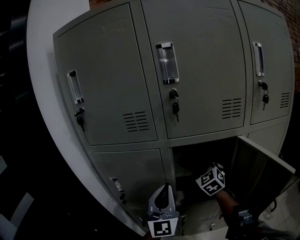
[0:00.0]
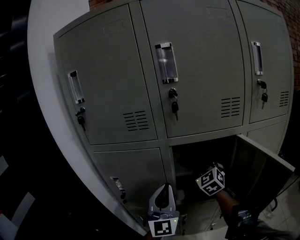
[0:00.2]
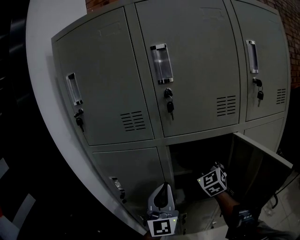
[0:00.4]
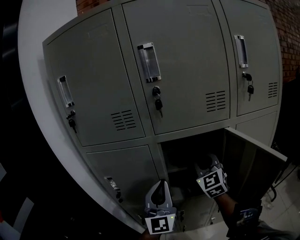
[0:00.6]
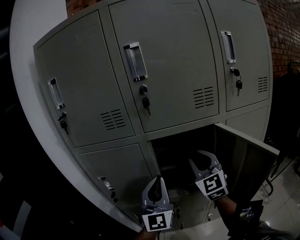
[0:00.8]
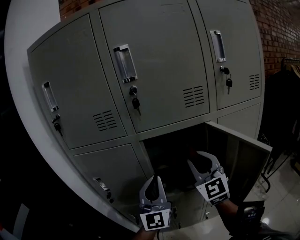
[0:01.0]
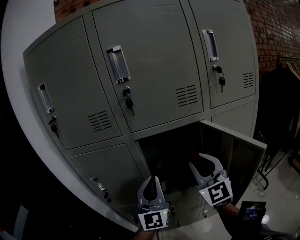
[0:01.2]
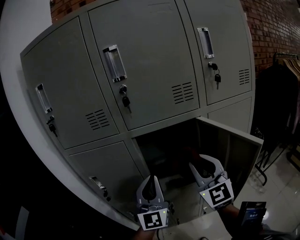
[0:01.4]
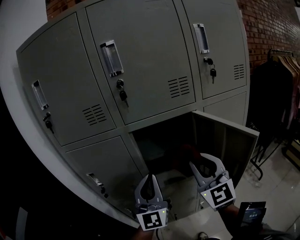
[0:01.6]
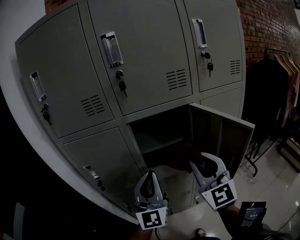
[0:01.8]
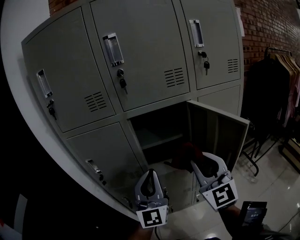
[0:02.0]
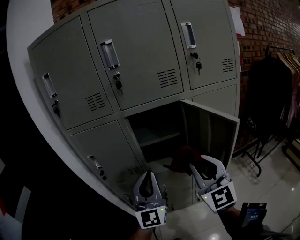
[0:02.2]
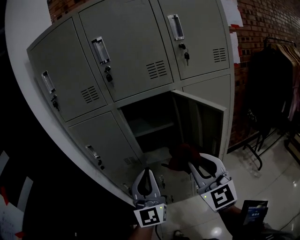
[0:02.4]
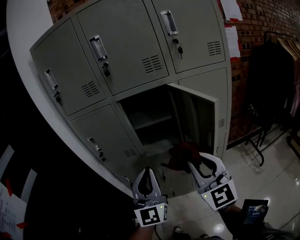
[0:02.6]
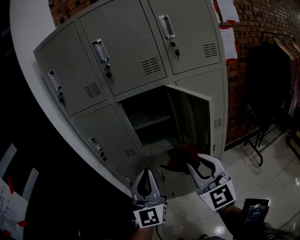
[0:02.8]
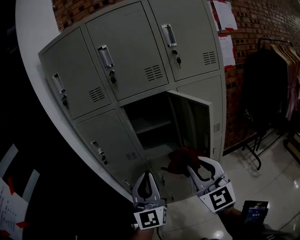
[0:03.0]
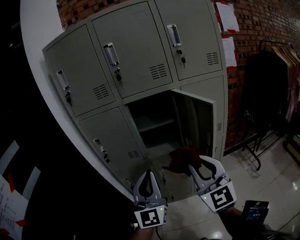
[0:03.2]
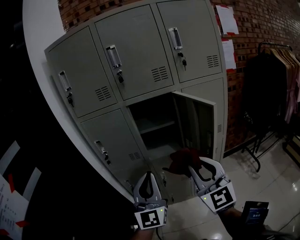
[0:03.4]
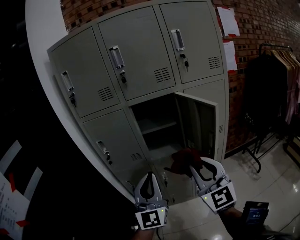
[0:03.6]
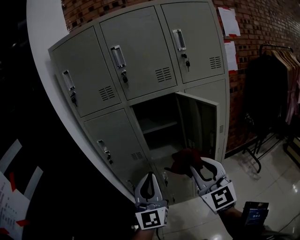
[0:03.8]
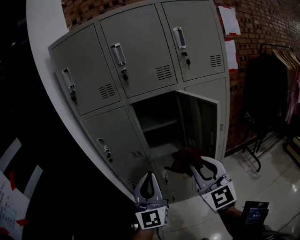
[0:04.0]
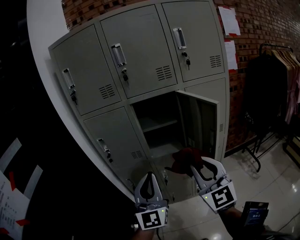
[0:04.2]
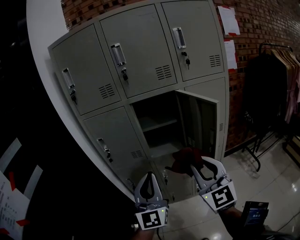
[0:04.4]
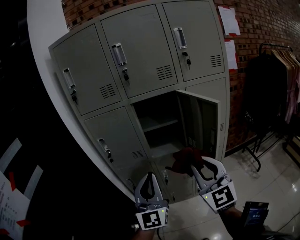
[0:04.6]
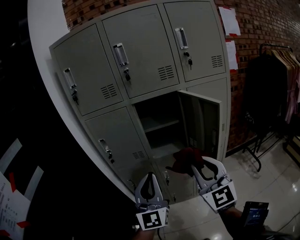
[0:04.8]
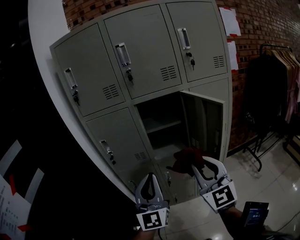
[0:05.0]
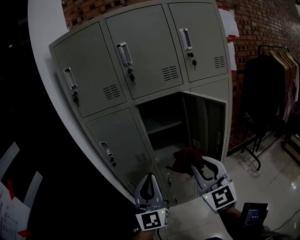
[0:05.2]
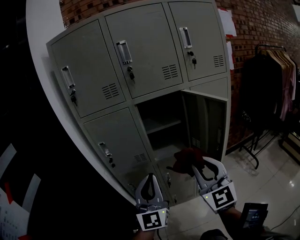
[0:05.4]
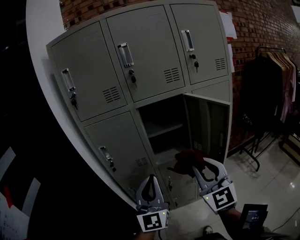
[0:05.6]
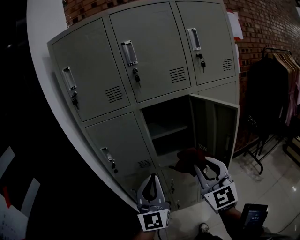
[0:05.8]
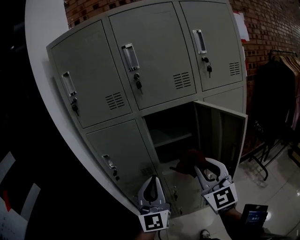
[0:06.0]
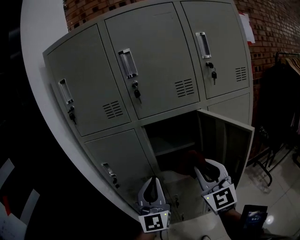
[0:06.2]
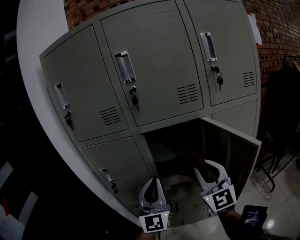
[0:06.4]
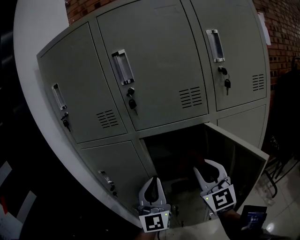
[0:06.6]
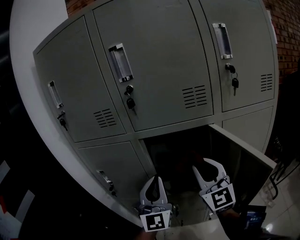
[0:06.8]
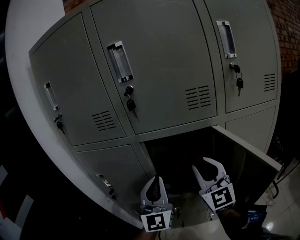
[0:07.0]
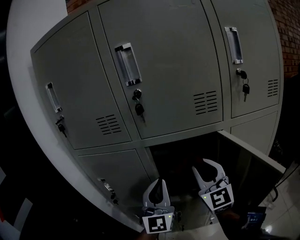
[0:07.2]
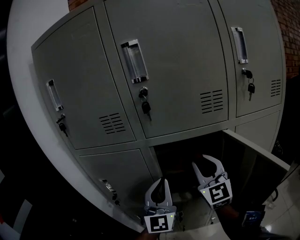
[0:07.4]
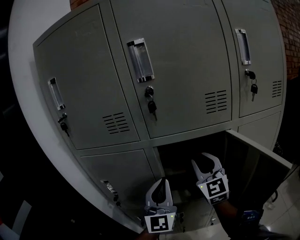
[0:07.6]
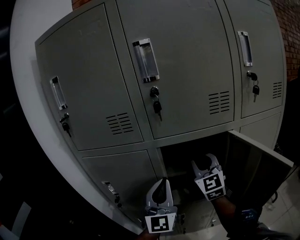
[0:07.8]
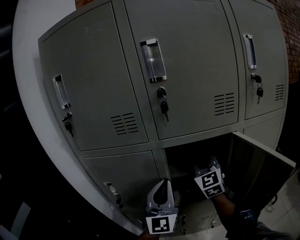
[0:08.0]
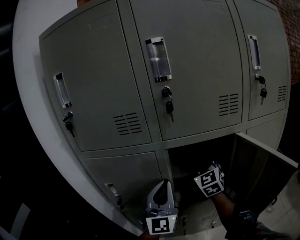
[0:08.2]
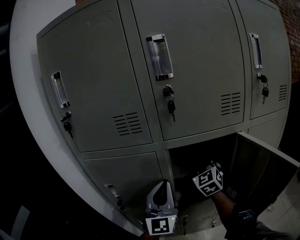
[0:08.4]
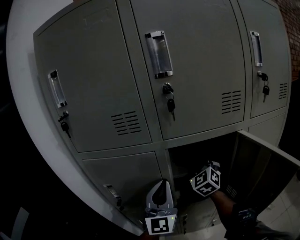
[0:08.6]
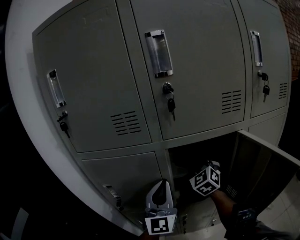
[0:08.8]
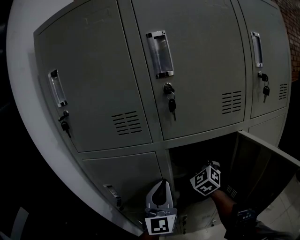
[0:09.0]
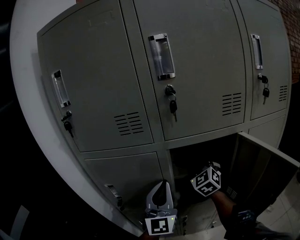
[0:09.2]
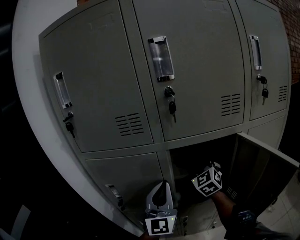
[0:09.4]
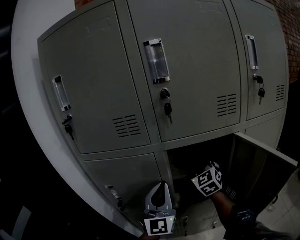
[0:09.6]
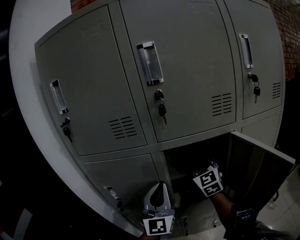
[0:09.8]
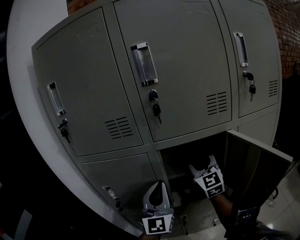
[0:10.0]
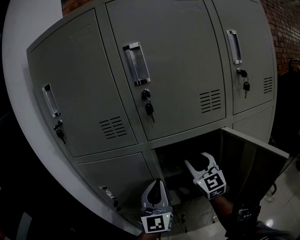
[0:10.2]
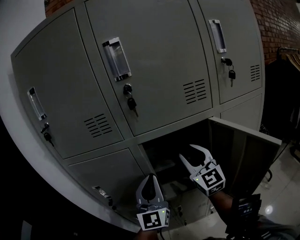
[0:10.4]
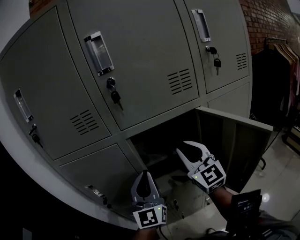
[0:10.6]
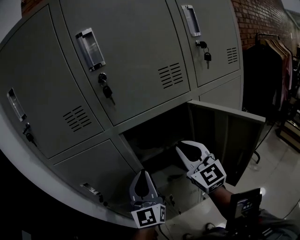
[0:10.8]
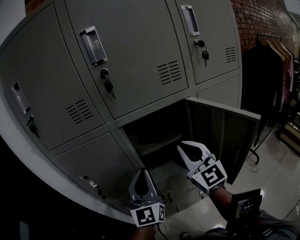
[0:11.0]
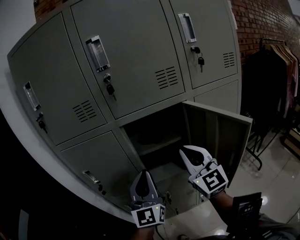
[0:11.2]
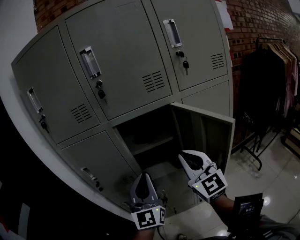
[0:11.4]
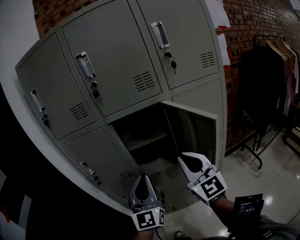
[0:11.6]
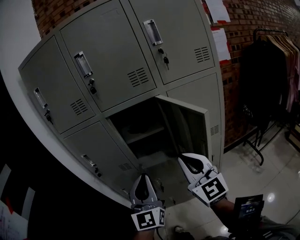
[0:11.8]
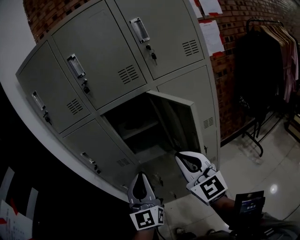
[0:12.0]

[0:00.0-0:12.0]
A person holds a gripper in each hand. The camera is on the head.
0:00.0 to 0:01.6: The right gripper shifts some 25 cm backward and upward, and changes its angle by approximately 30 degrees. The left gripper moves backward and to the right, some 5 cm.
0:01.6 to 0:03.0: The two grippers go approximately 20 cm backward.
0:03.0 to 0:04.4: The grippers stay close to where they were, moving slightly.
0:04.4 to 0:06.0: The two grippers go roughly 10 cm forward.
0:06.0 to 0:07.6: The grippers both shift forward by some 25 cm.
0:07.6 to 0:09.0: The right gripper goes some 10 cm forward and downward, and changes its angle by some 30 degrees.
0:09.0 to 0:10.4: The right gripper heads backward and upward, covering roughly 10 cm, and swivels about 40 degrees.
0:10.4 to 0:12.0: The right gripper goes roughly 30 cm backward, and closes its fingers, while the left gripper heads backward and to the right, covering roughly 25 cm.

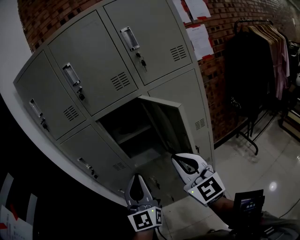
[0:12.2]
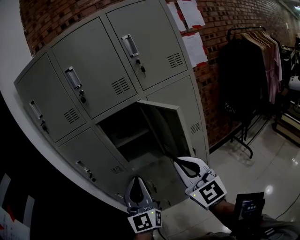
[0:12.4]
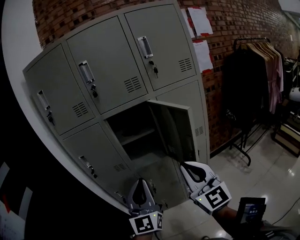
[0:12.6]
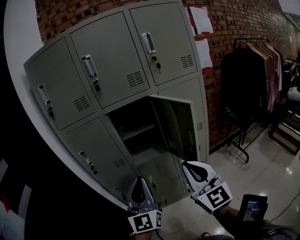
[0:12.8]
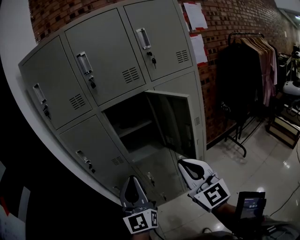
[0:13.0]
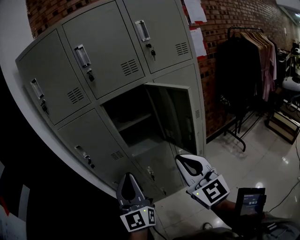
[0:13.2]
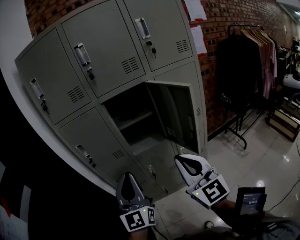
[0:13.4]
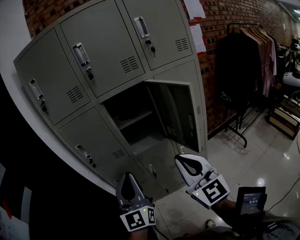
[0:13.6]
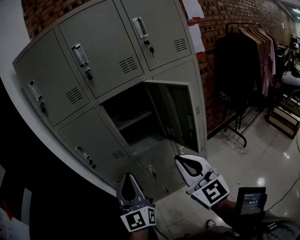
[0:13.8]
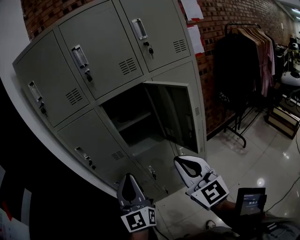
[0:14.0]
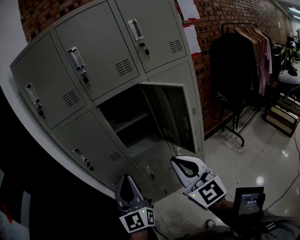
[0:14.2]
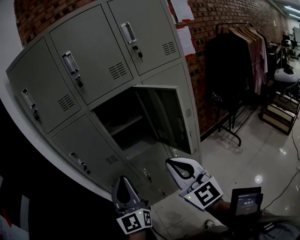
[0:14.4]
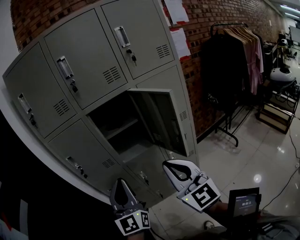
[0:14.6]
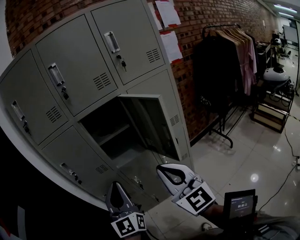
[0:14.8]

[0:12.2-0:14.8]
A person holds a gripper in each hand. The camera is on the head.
0:12.2 to 0:13.4: The right gripper moves to the left and backward, about 10 cm. The left gripper shifts roughly 10 cm to the left.
0:13.4 to 0:14.8: There are only small adjustments of the grippers.

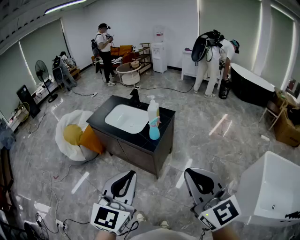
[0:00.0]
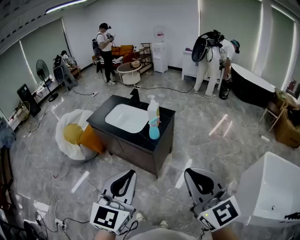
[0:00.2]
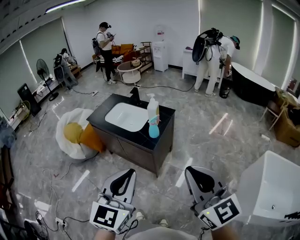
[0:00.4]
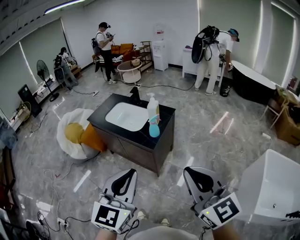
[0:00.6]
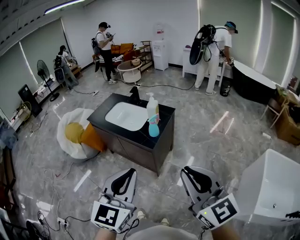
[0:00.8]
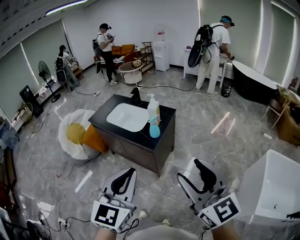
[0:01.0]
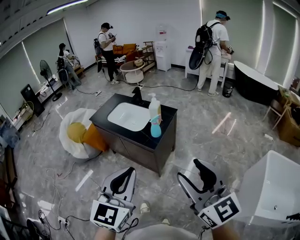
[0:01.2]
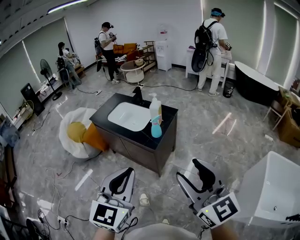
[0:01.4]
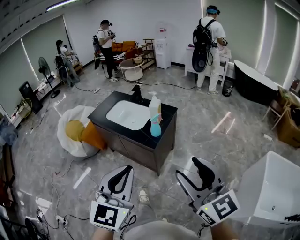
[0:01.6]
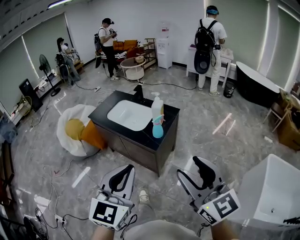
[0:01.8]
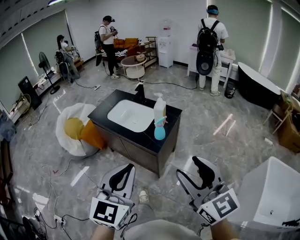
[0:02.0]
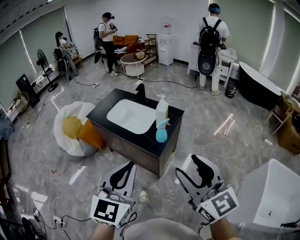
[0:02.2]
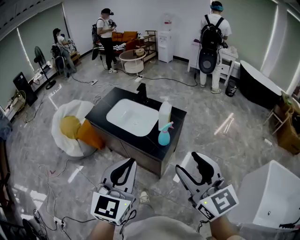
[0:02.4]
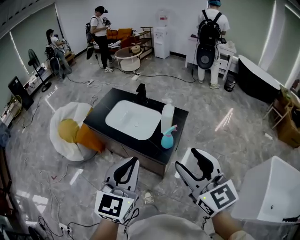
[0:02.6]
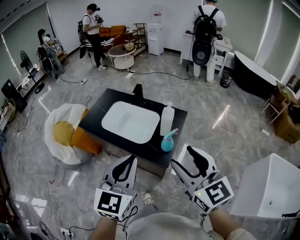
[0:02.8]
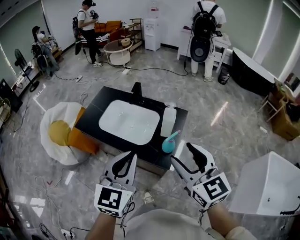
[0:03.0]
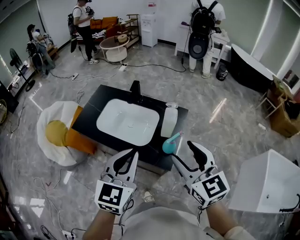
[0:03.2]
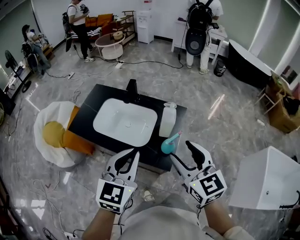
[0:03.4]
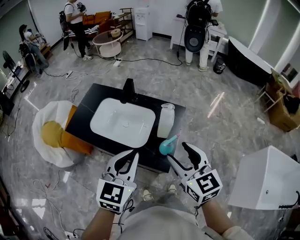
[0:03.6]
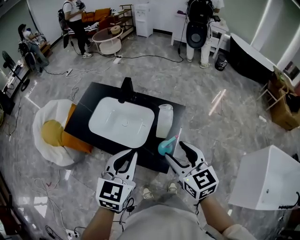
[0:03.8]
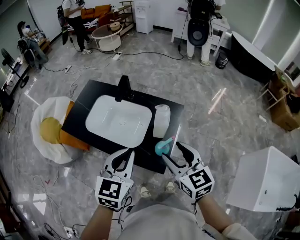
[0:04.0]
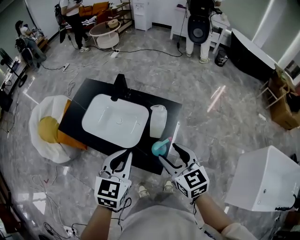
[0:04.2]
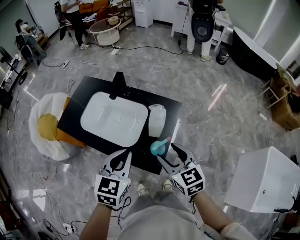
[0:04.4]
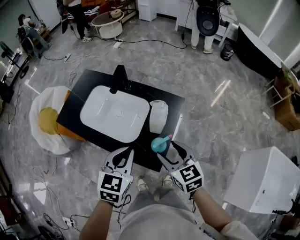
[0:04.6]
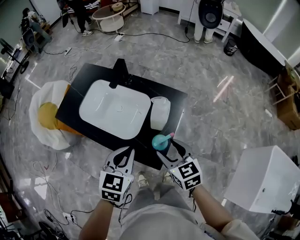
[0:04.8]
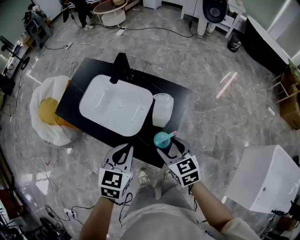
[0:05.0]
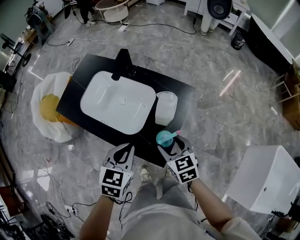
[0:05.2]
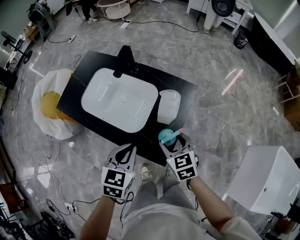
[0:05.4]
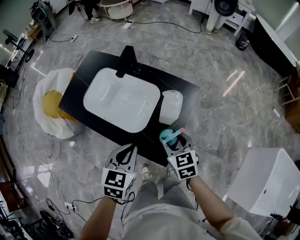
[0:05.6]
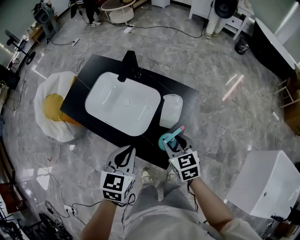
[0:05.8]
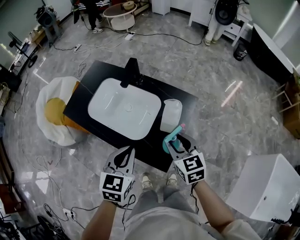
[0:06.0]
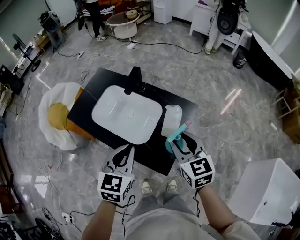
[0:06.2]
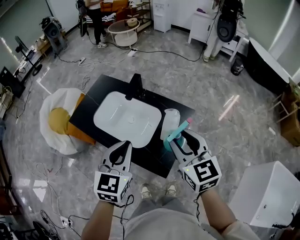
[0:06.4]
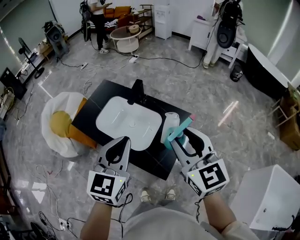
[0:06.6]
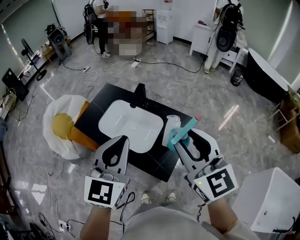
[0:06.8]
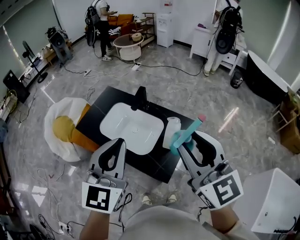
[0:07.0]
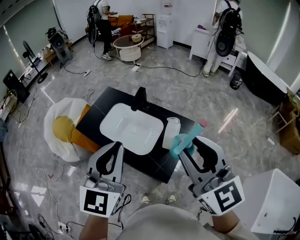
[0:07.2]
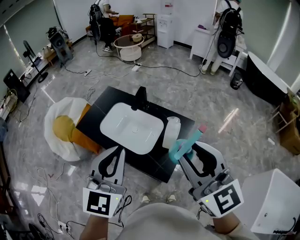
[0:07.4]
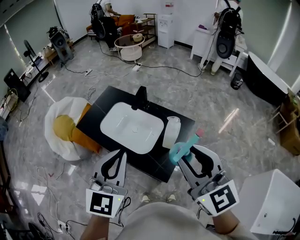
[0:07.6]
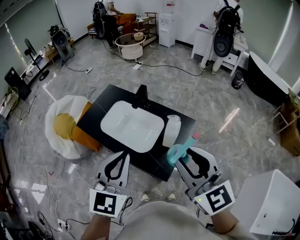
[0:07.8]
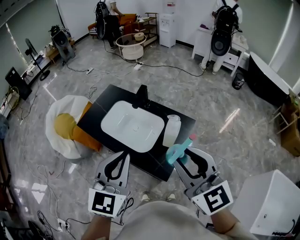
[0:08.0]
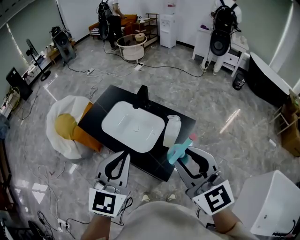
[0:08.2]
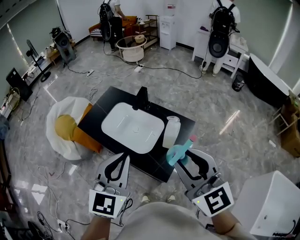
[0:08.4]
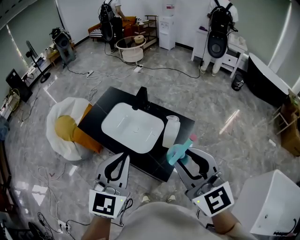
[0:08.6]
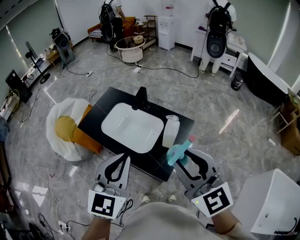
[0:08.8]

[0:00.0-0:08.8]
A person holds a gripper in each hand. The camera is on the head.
0:00.0 to 0:01.4: The right gripper opens its fingers.
0:01.4 to 0:03.0: Both grippers move forward, about 35 cm.
0:03.0 to 0:04.4: Both grippers move downward and forward, approximately 20 cm.
0:04.4 to 0:05.8: The left gripper heads downward, covering approximately 10 cm. Meanwhile the right gripper heads downward and forward, covering approximately 15 cm.
0:05.8 to 0:07.4: The grippers both shift upward by roughly 35 cm. The left gripper points its fingers about 30 degrees further upward; the right gripper points its fingers some 40 degrees further upward.
0:07.4 to 0:08.8: There are only small adjustments of the grippers.
